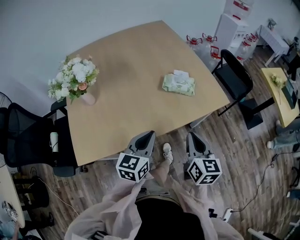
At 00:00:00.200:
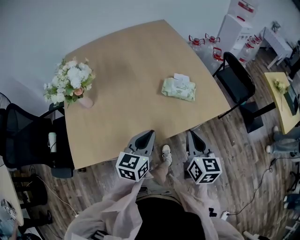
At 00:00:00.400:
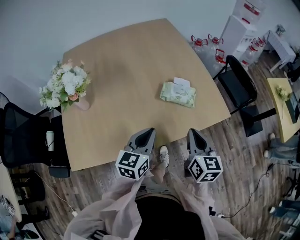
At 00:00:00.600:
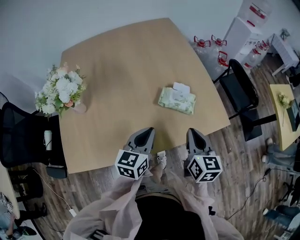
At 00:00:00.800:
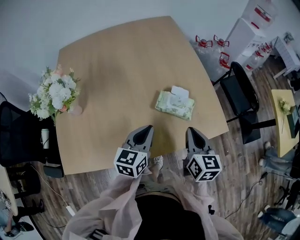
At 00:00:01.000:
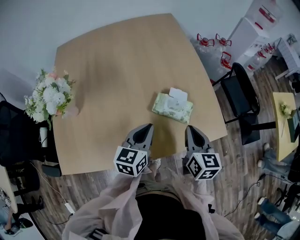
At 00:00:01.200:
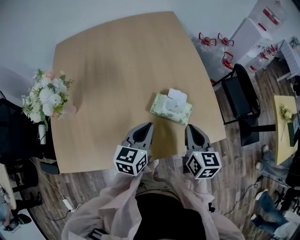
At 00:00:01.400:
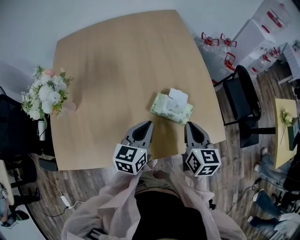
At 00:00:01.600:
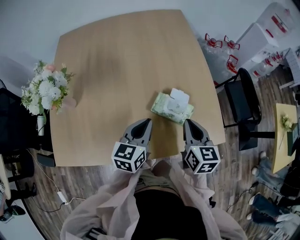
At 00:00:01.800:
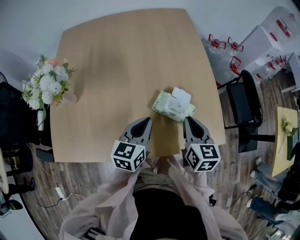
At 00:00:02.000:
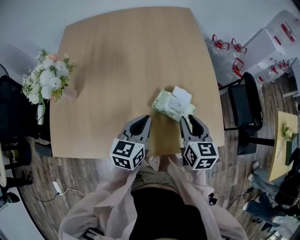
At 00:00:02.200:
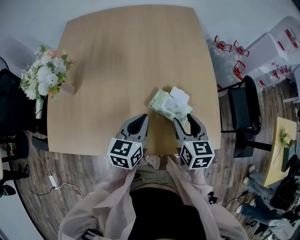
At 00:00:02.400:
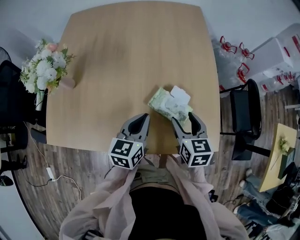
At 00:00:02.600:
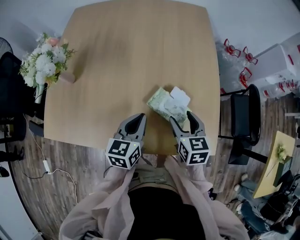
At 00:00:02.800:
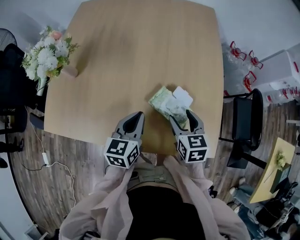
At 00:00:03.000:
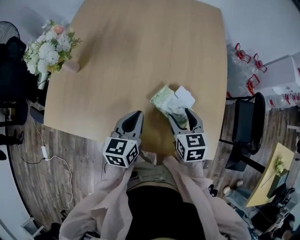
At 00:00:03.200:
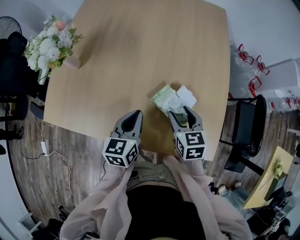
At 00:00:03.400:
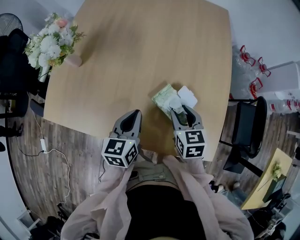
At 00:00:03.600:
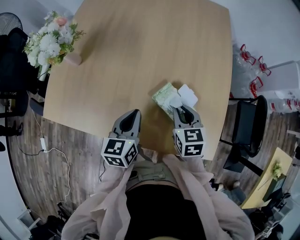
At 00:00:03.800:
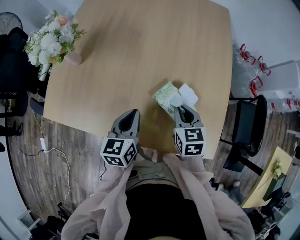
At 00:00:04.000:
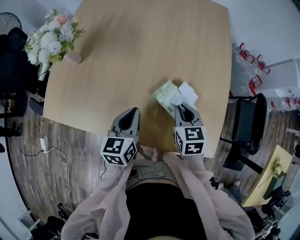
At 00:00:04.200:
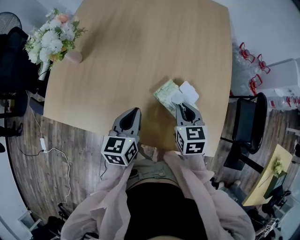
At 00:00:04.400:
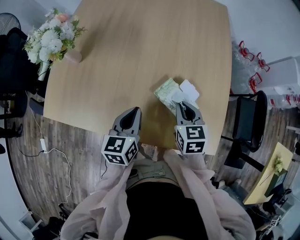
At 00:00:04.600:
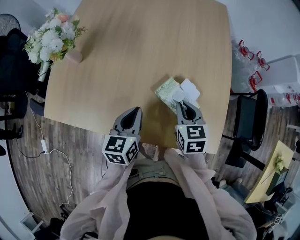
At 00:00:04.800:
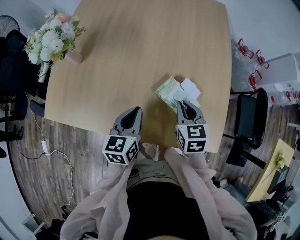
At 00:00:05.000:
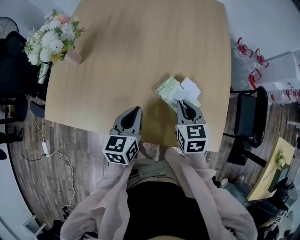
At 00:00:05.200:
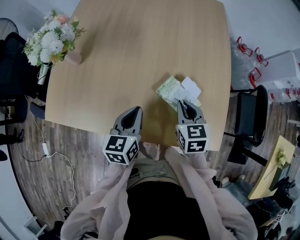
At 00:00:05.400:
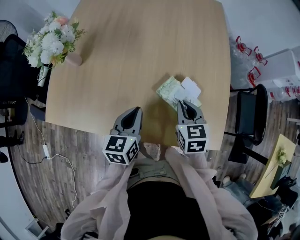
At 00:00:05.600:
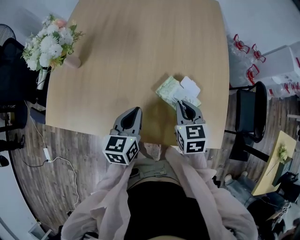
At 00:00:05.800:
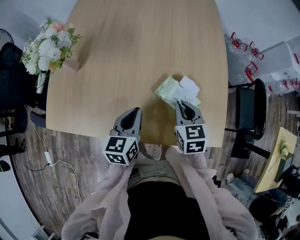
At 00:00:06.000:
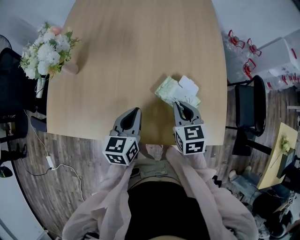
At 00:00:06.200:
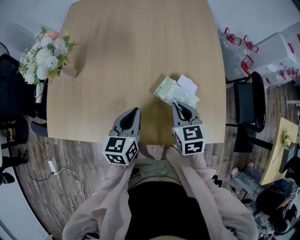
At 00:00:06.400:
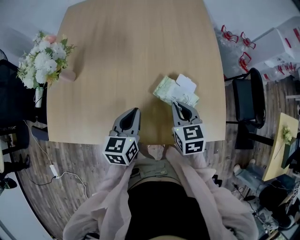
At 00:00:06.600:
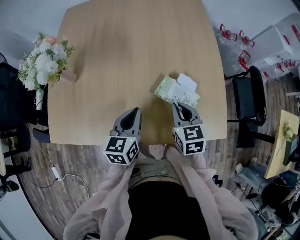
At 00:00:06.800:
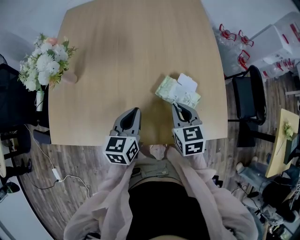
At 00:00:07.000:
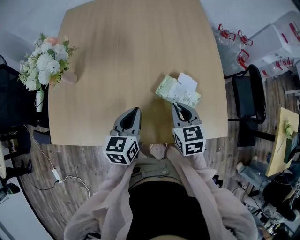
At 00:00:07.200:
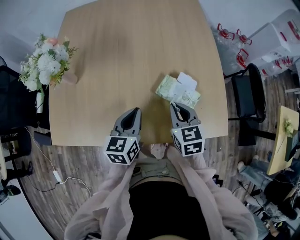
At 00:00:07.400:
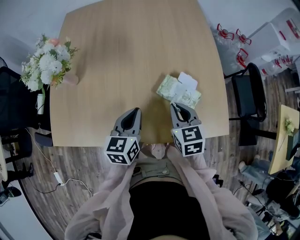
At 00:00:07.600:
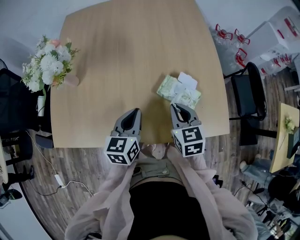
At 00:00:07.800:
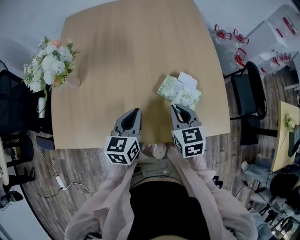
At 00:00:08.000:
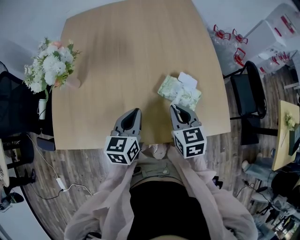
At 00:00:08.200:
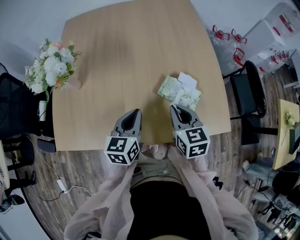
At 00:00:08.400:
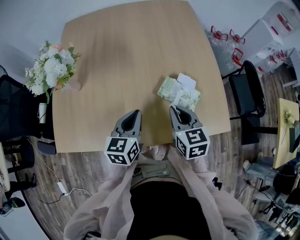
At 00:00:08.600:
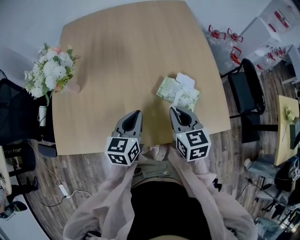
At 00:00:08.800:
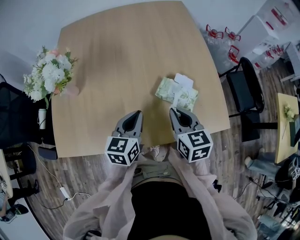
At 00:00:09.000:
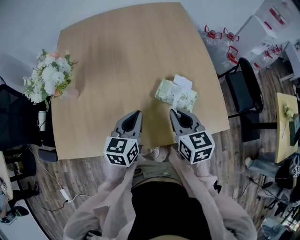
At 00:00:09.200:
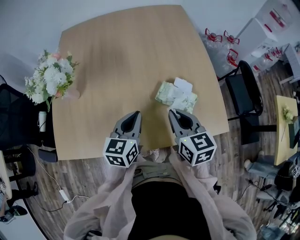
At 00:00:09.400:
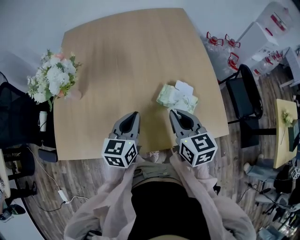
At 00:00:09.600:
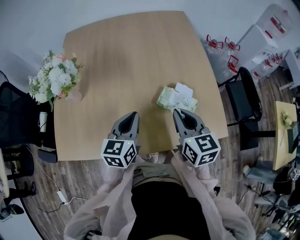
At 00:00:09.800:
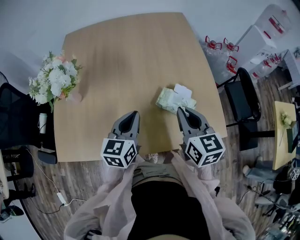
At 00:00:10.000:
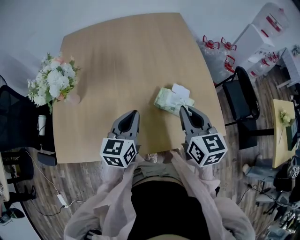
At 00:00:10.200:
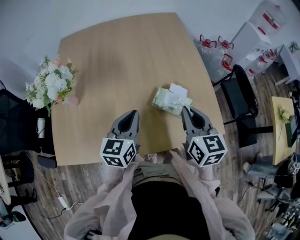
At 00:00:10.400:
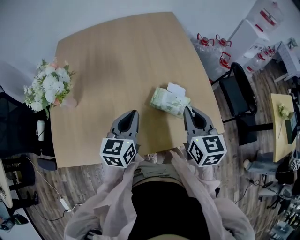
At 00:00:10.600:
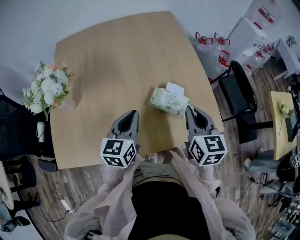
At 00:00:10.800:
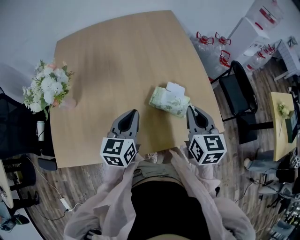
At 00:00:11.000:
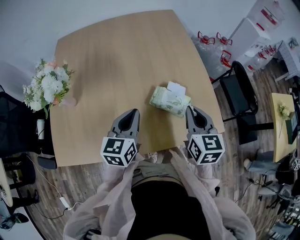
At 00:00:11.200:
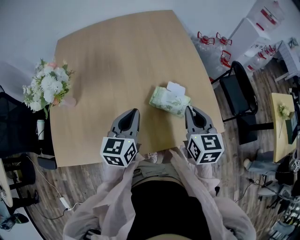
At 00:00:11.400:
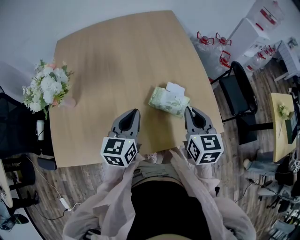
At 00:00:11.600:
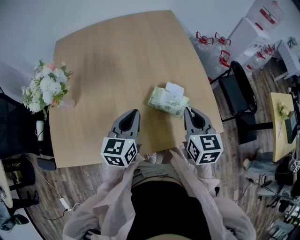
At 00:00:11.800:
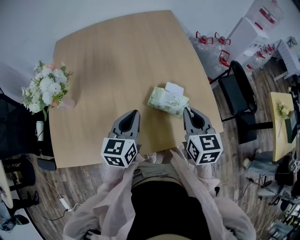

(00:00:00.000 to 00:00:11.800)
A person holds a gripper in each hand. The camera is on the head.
00:00:00.000 - 00:00:01.400: Both grippers travel together forward, some 25 cm.
00:00:01.400 - 00:00:03.000: The left gripper changes its angle by about 30 degrees, while the right gripper moves downward, some 5 cm, turns by roughly 30 degrees, and opens up.
00:00:03.000 - 00:00:04.400: The right gripper closes its fingers.
00:00:04.400 - 00:00:06.000: The grippers stay close to where they were, moving slightly.
00:00:06.000 - 00:00:07.400: The grippers stay close to where they were, moving slightly.
00:00:07.400 - 00:00:08.800: There are only small adjustments of the grippers.
00:00:08.800 - 00:00:10.400: The right gripper heads upward and to the right, covering about 10 cm, while the left gripper moves some 5 cm.
00:00:10.400 - 00:00:11.800: The grippers make only small movements.

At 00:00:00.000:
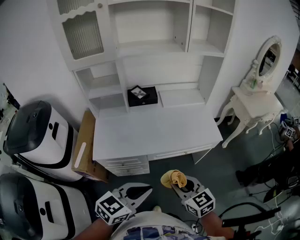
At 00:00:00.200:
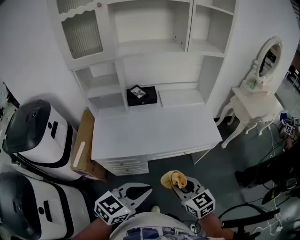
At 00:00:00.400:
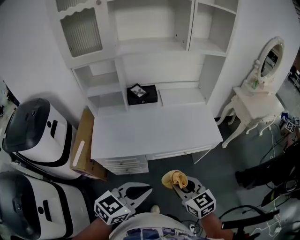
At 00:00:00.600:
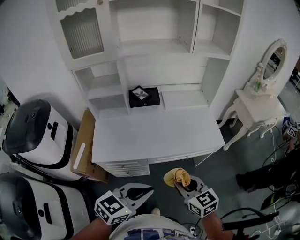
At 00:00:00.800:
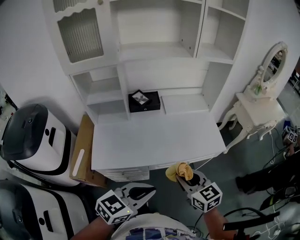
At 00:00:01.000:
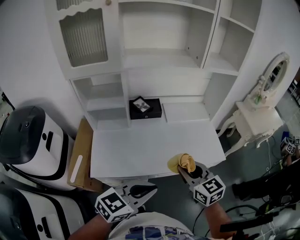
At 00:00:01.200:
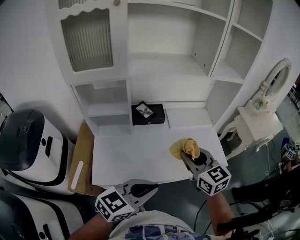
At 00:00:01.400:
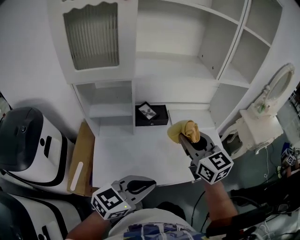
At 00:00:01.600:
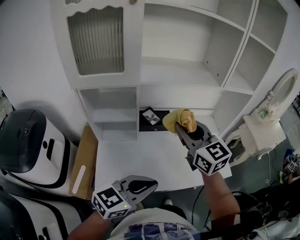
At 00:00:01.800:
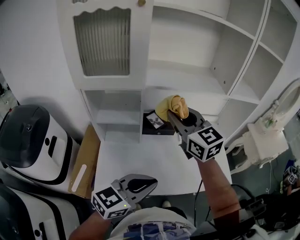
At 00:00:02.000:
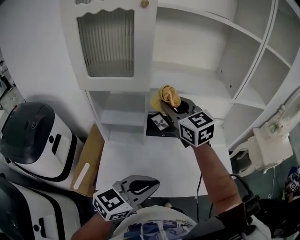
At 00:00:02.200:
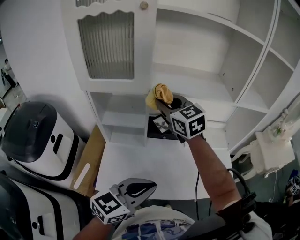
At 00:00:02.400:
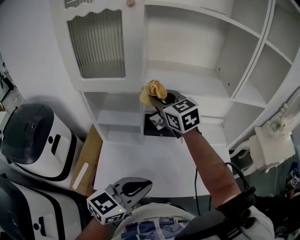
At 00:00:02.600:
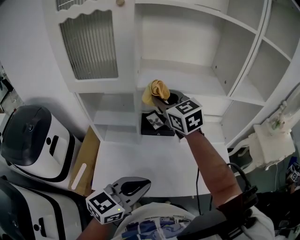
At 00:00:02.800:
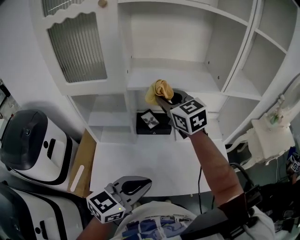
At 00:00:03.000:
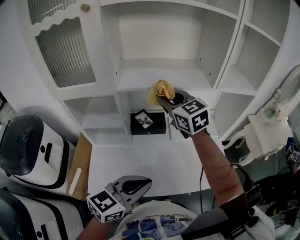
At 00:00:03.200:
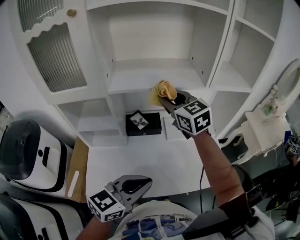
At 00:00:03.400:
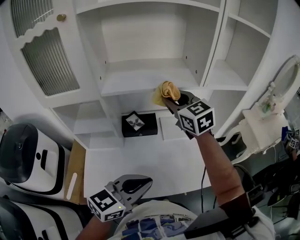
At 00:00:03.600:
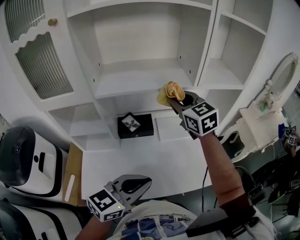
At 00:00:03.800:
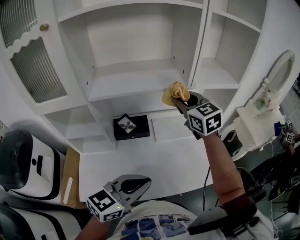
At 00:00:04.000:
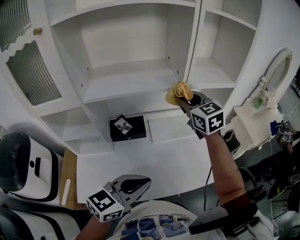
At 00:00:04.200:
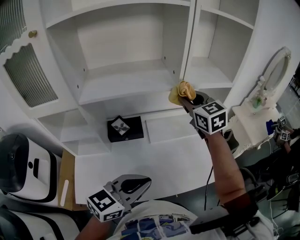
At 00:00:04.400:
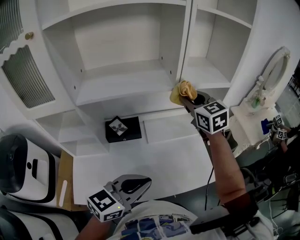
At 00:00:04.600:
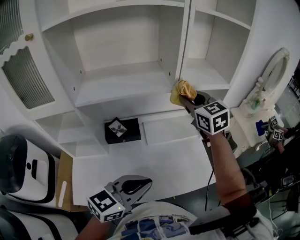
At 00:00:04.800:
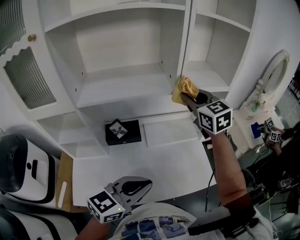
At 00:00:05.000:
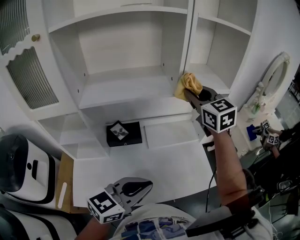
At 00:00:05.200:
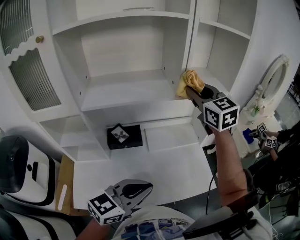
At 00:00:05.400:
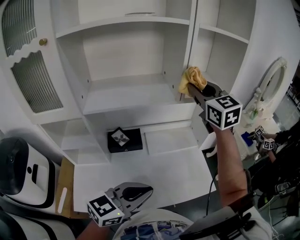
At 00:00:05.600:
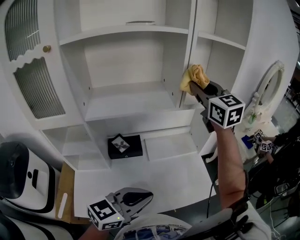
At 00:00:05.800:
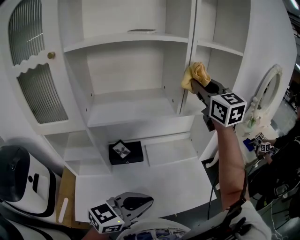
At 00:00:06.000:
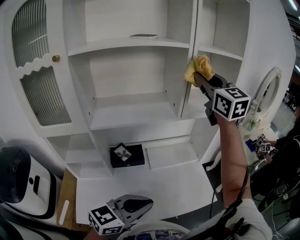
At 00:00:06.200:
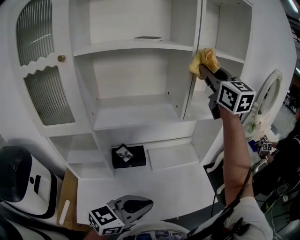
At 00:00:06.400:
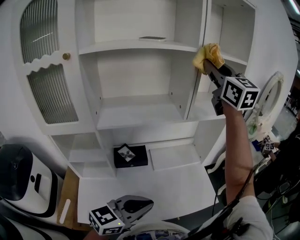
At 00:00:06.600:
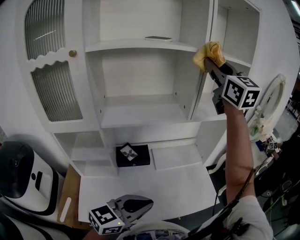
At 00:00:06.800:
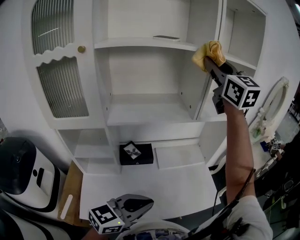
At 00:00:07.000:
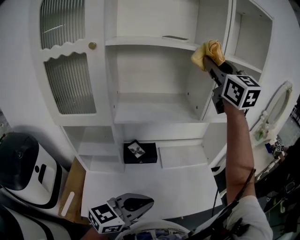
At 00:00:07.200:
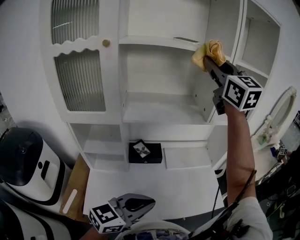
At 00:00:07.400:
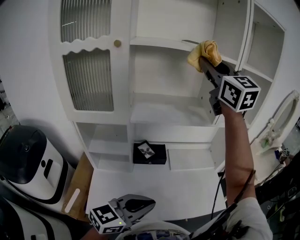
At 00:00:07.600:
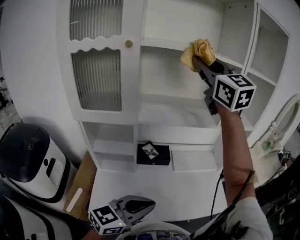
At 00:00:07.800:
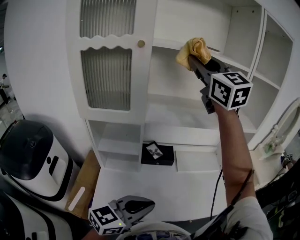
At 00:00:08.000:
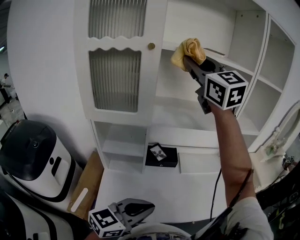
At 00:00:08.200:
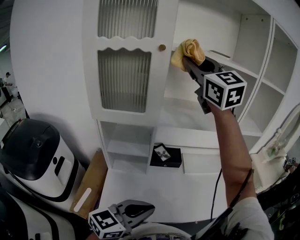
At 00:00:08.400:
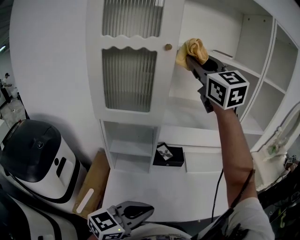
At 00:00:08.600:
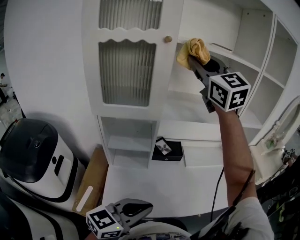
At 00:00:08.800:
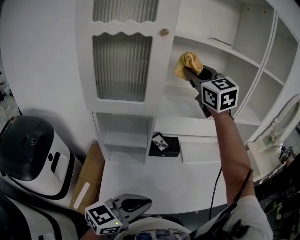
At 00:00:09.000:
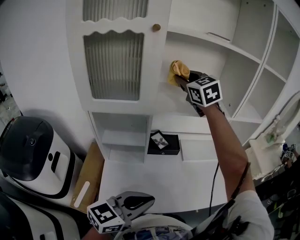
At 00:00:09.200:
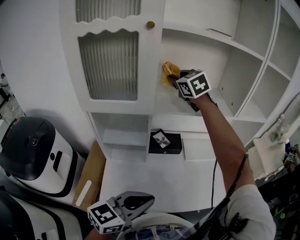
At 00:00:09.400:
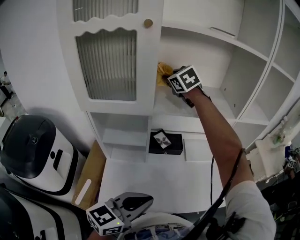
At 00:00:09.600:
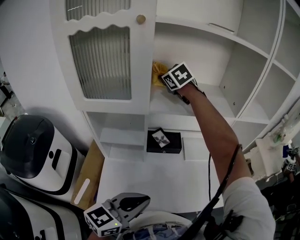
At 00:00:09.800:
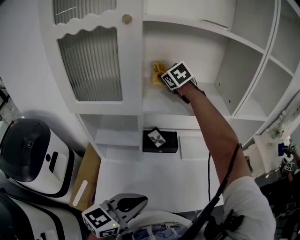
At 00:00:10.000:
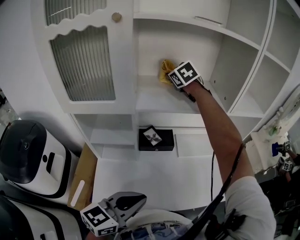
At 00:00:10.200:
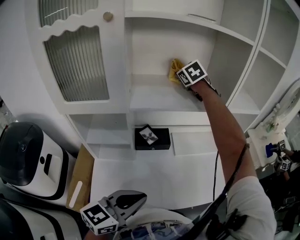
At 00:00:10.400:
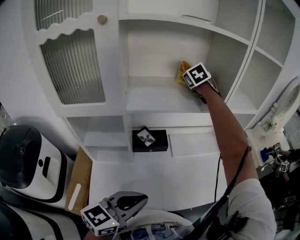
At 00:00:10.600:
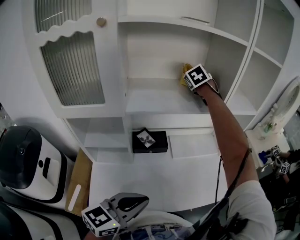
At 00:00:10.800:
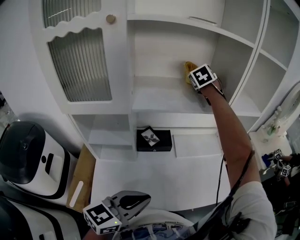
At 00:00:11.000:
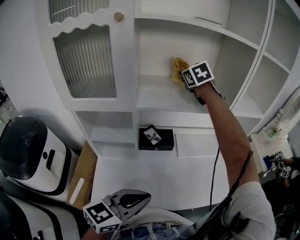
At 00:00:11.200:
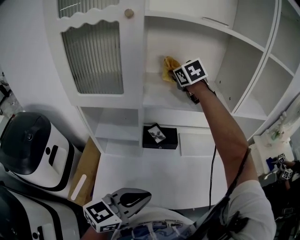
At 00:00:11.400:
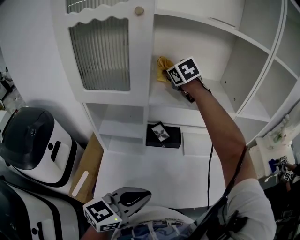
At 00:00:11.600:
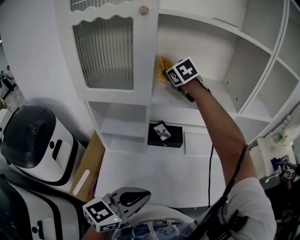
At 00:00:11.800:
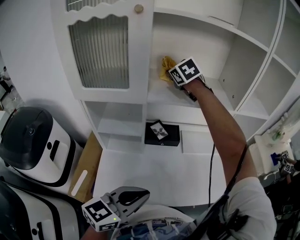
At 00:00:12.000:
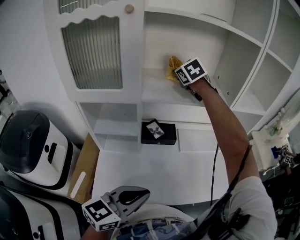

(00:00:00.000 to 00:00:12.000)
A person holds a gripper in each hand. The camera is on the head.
00:00:00.000 - 00:00:01.600: The left gripper travels forward and to the left by approximately 25 cm, while the right gripper is displaced forward, upward and to the left by approximately 50 cm, and swivels roughly 20 degrees.
00:00:01.600 - 00:00:03.000: The right gripper heads forward, covering roughly 15 cm; the left gripper moves forward and to the right, approximately 10 cm.
00:00:03.000 - 00:00:04.400: The right gripper travels to the right by some 25 cm. Meanwhile the left gripper is displaced to the right and forward by roughly 10 cm.
00:00:04.400 - 00:00:06.000: The right gripper moves upward, roughly 25 cm, and changes its angle by approximately 20 degrees.
00:00:06.000 - 00:00:07.600: The left gripper goes roughly 10 cm to the left and backward. The right gripper goes roughly 25 cm to the left and backward.
00:00:07.600 - 00:00:09.000: The right gripper goes some 20 cm downward, to the left and forward, and turns by roughly 20 degrees. The left gripper moves to the left, some 5 cm.
00:00:09.000 - 00:00:10.400: The left gripper changes place by roughly 5 cm; the right gripper travels forward, to the right and downward by roughly 25 cm, and swivels some 30 degrees.
00:00:10.400 - 00:00:12.000: The right gripper is displaced to the left and backward by roughly 15 cm.
